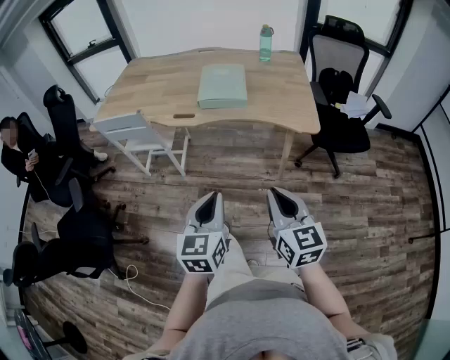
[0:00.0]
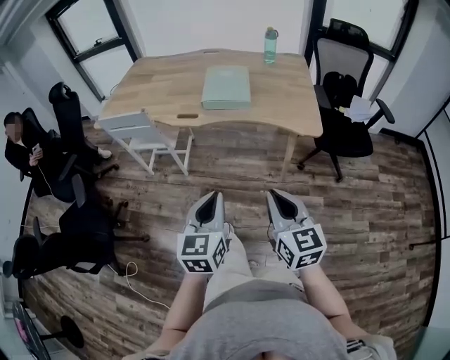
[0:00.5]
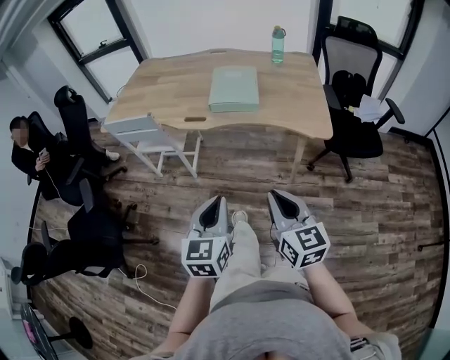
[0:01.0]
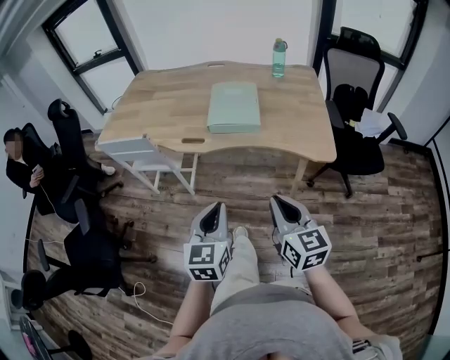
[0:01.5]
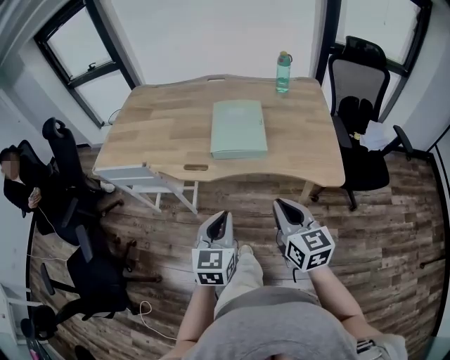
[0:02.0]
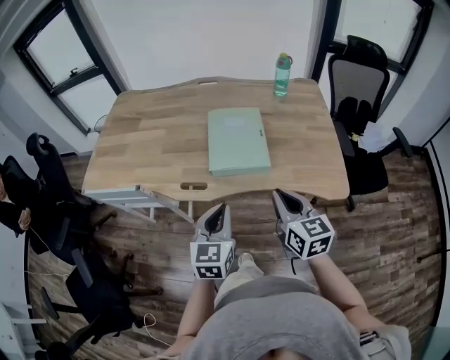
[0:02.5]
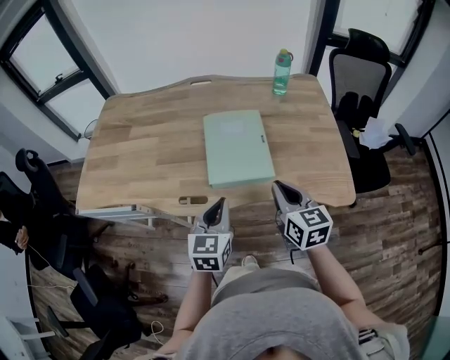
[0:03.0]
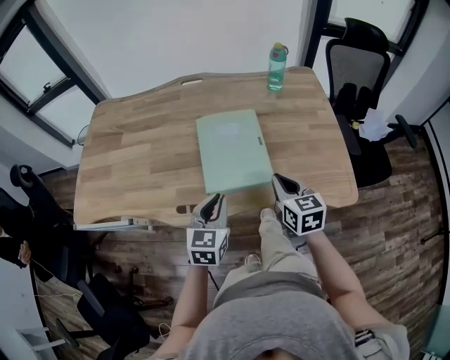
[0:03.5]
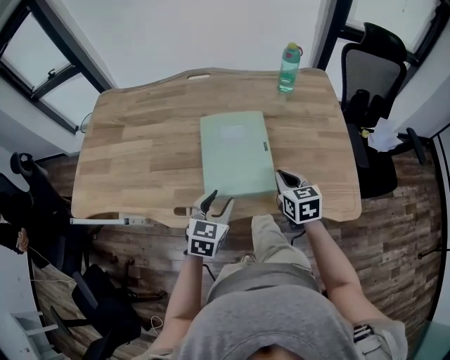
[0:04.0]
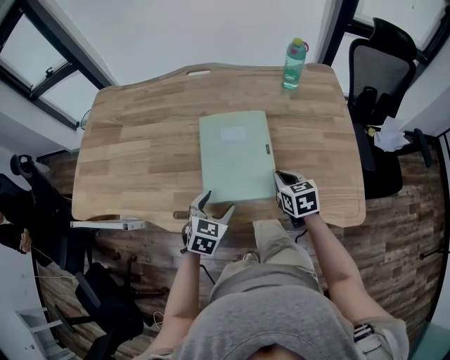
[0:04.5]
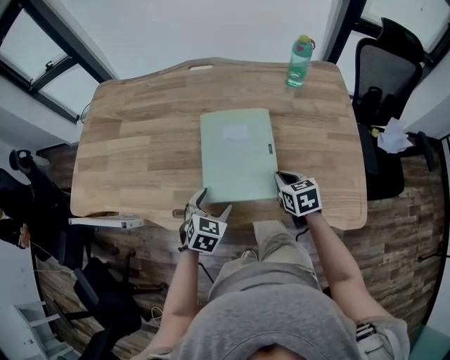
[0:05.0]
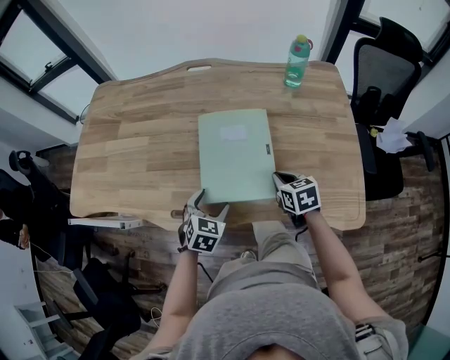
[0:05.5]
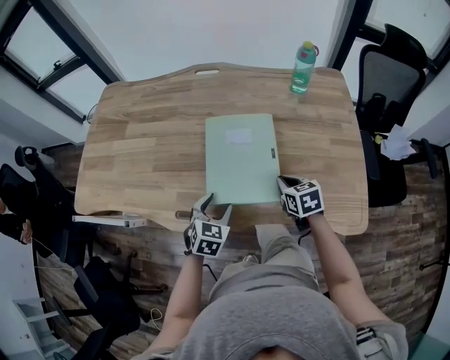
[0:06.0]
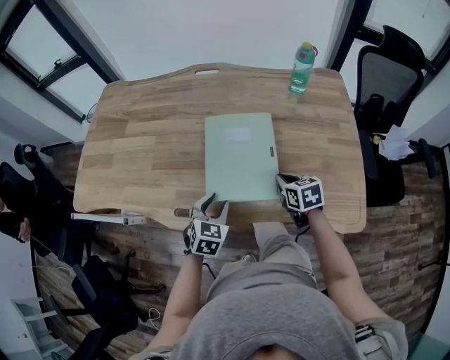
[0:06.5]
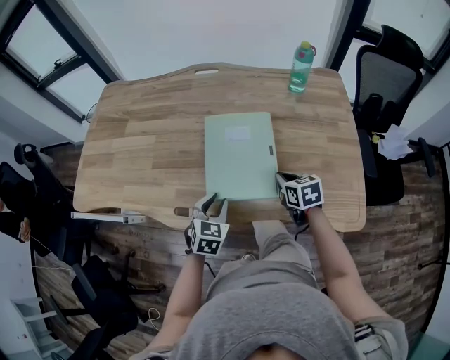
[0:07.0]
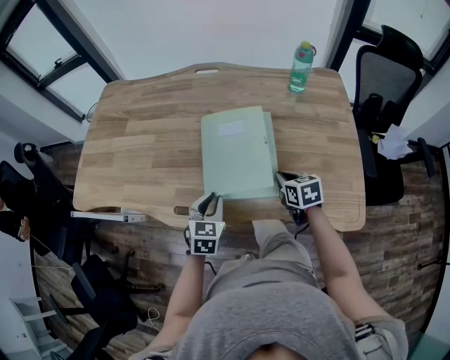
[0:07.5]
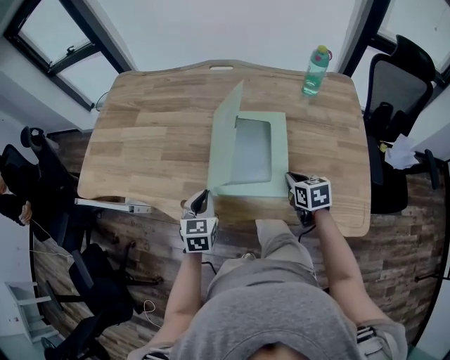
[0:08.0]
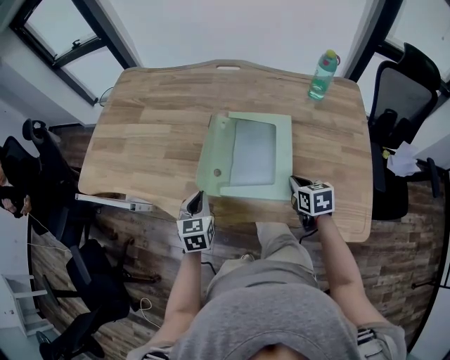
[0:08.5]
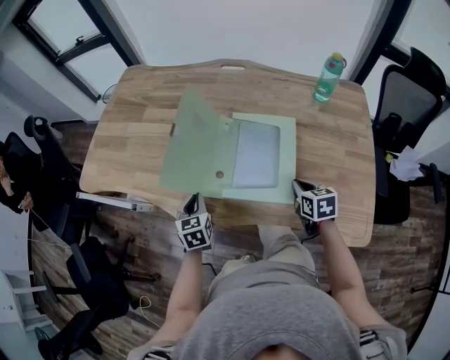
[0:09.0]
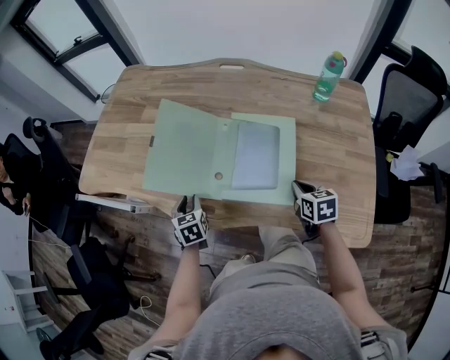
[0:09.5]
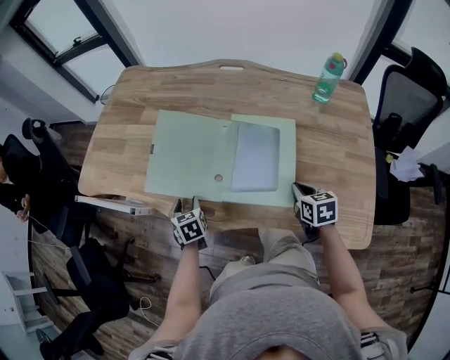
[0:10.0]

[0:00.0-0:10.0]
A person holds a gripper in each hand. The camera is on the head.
0:00.0 to 0:02.0: The grippers both shift forward by about 25 cm.
0:02.0 to 0:04.0: The right gripper travels forward and downward by approximately 35 cm, and rotates some 20 degrees. Meanwhile the left gripper travels forward by about 30 cm, changes its angle by approximately 20 degrees, and opens.
0:04.0 to 0:06.0: The grippers both shift downward by some 5 cm.
0:06.0 to 0:08.0: The left gripper heads to the left, covering roughly 5 cm, changes its angle by roughly 20 degrees, and closes.
0:08.0 to 0:10.0: The left gripper moves to the left and downward, some 15 cm, changes its angle by approximately 30 degrees, and opens.

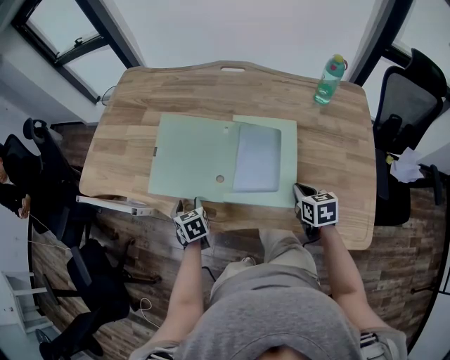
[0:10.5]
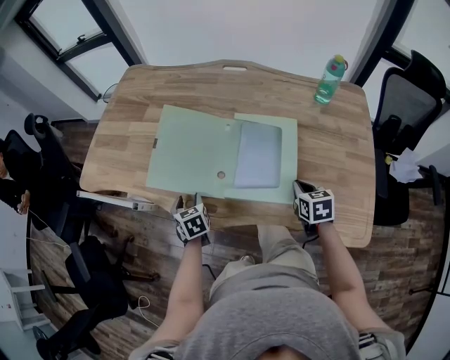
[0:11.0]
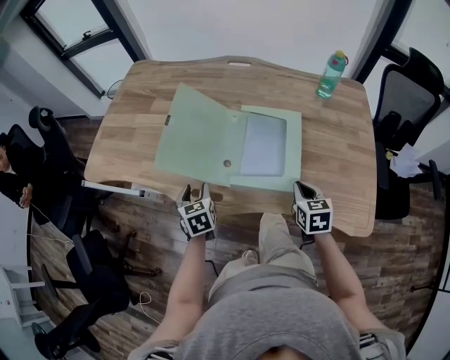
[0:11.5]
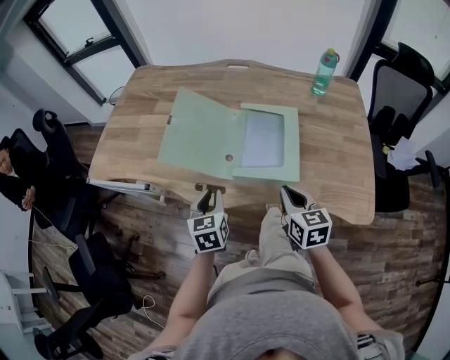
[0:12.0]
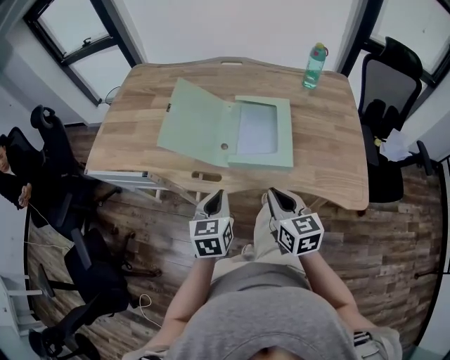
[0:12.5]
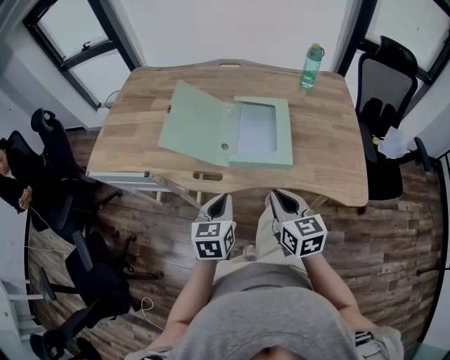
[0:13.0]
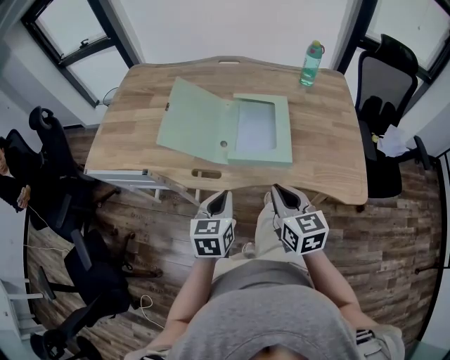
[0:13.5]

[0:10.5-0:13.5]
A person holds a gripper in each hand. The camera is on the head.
0:10.5 to 0:12.0: The left gripper heads upward, backward and to the right, covering roughly 15 cm, swivels roughly 20 degrees, and closes its fingers. The right gripper is displaced to the left, upward and backward by about 20 cm.
0:12.0 to 0:13.5: The grippers both shift backward by roughly 10 cm.

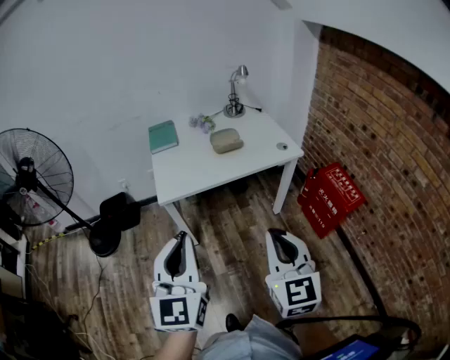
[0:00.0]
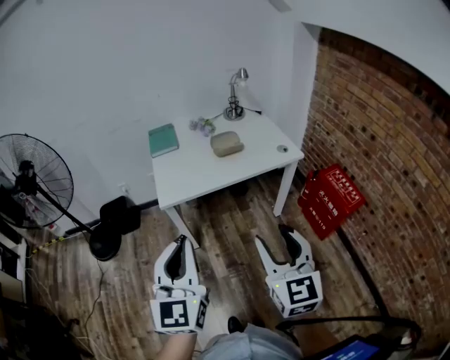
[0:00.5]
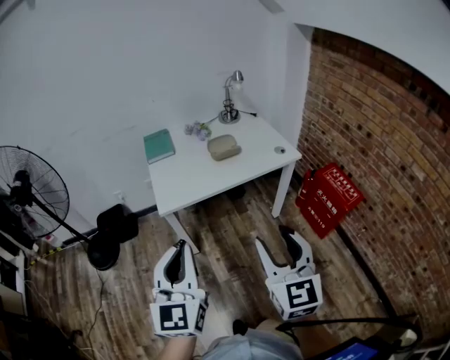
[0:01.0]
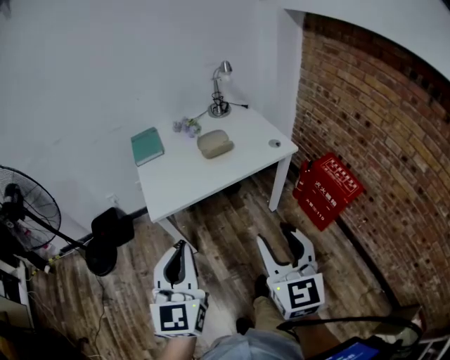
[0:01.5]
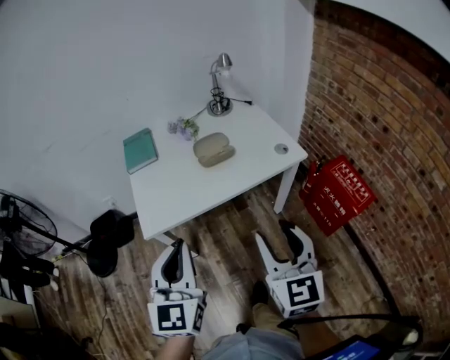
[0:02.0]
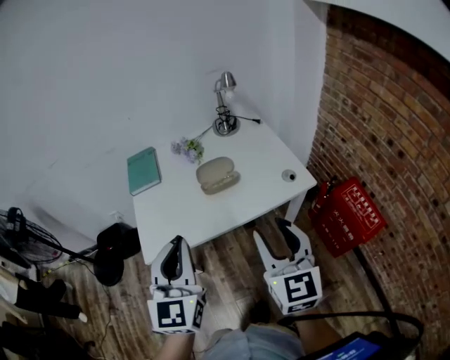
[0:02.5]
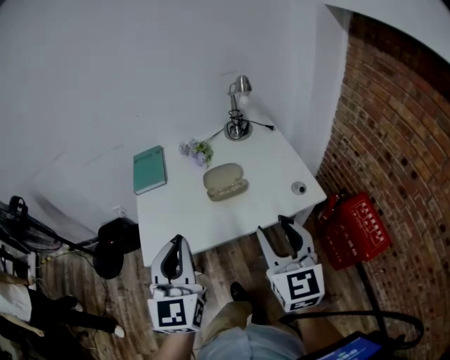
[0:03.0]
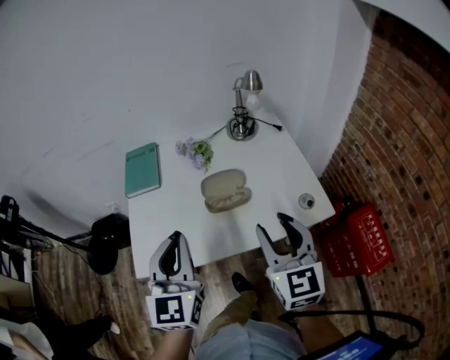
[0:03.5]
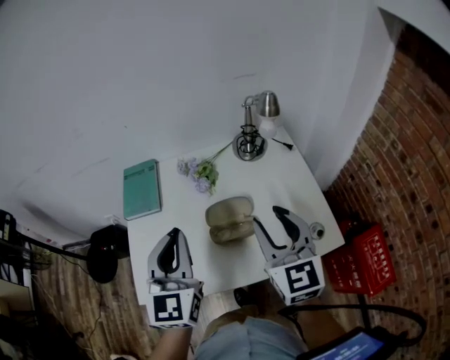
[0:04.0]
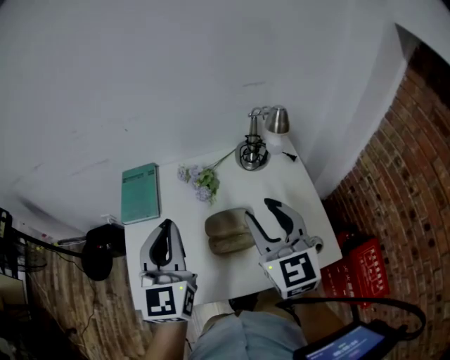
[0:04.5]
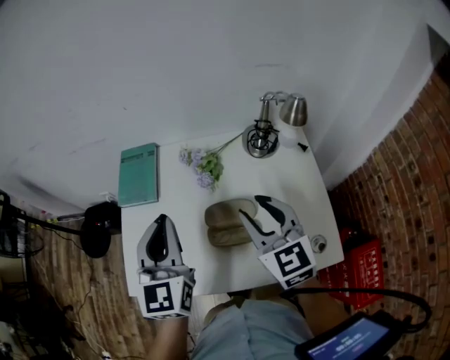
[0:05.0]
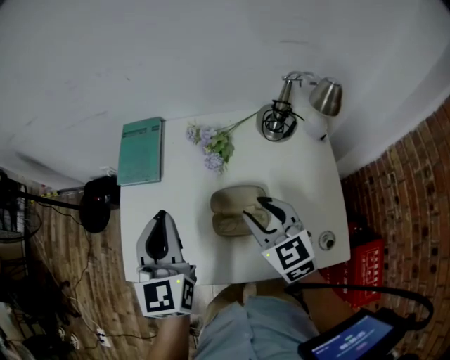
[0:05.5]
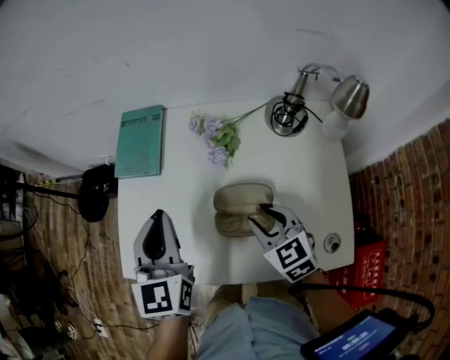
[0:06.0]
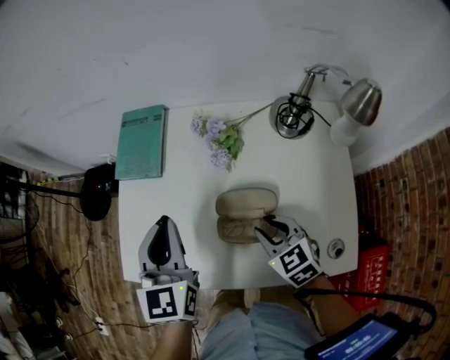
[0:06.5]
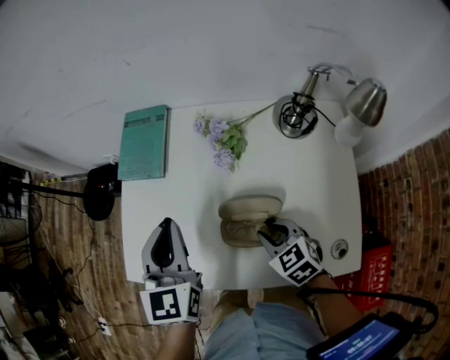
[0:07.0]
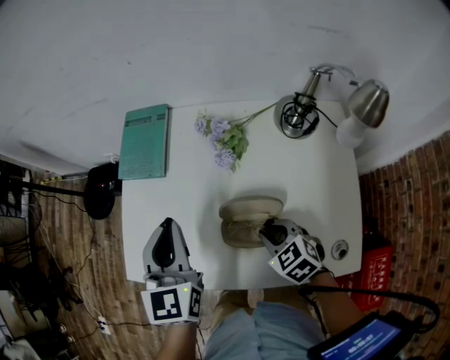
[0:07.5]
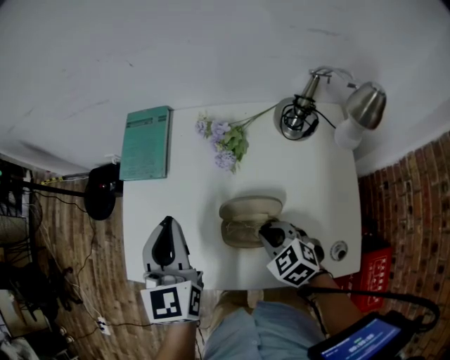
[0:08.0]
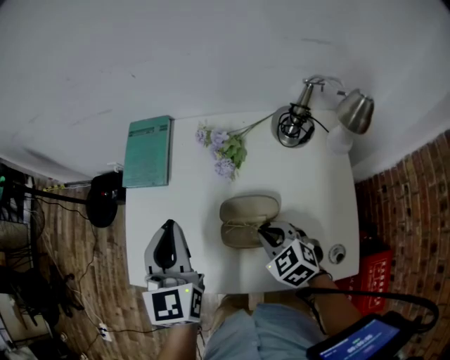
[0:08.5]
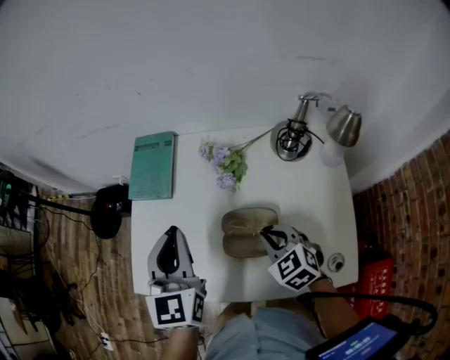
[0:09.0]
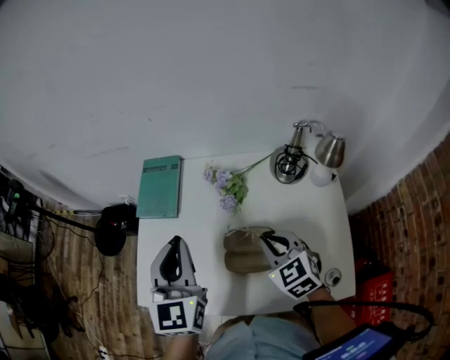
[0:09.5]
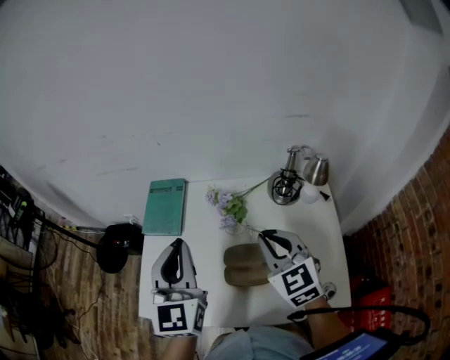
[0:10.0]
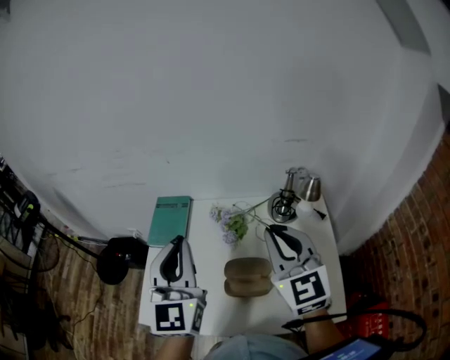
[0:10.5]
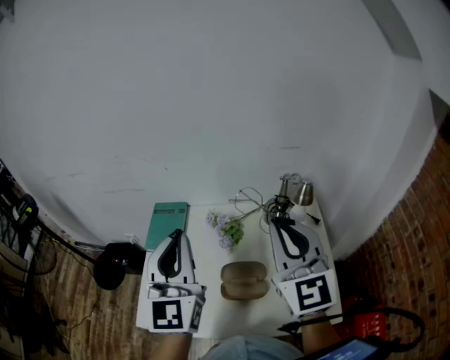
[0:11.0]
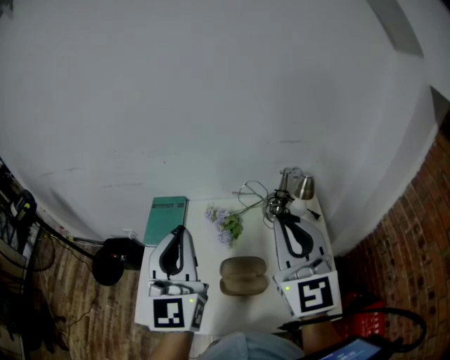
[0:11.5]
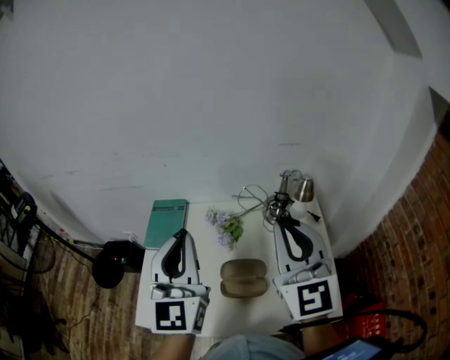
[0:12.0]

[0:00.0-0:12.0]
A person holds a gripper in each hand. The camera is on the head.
0:00.0 to 0:02.0: Both grippers move forward, approximately 15 cm. The right gripper opens.
0:02.0 to 0:04.0: Both grippers travel together forward, roughly 35 cm.
0:04.0 to 0:06.0: The right gripper is displaced downward and forward by about 20 cm, and swivels roughly 40 degrees; the left gripper shifts about 10 cm forward and downward, and turns by some 20 degrees.
0:06.0 to 0:08.0: The right gripper is displaced downward by about 5 cm, turns by about 20 degrees, and closes its fingers.
0:08.0 to 0:10.0: The right gripper moves upward, about 20 cm, and points its fingers approximately 30 degrees further upward; the left gripper moves upward, roughly 10 cm.
0:10.0 to 0:12.0: The left gripper is displaced upward by about 10 cm; the right gripper heads upward, covering approximately 20 cm, and swivels about 30 degrees.

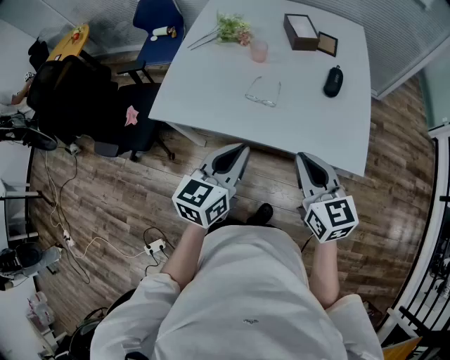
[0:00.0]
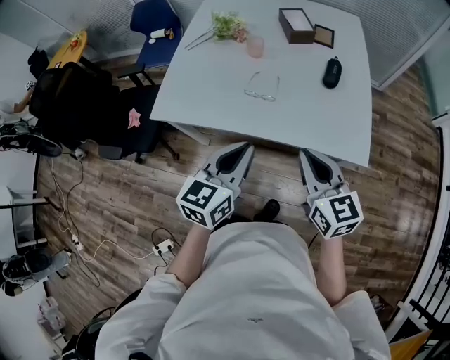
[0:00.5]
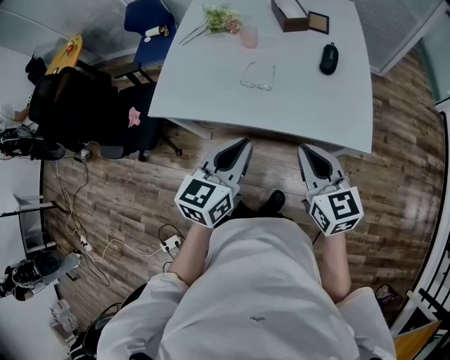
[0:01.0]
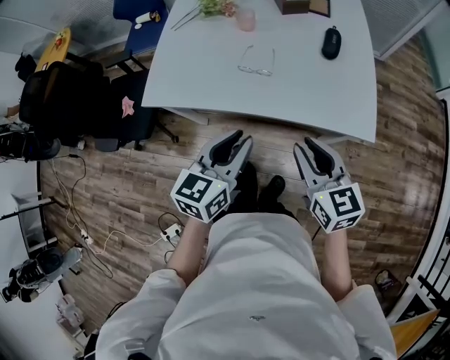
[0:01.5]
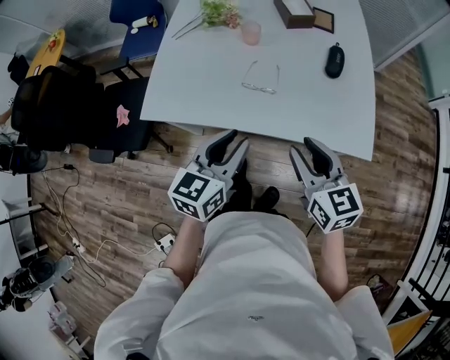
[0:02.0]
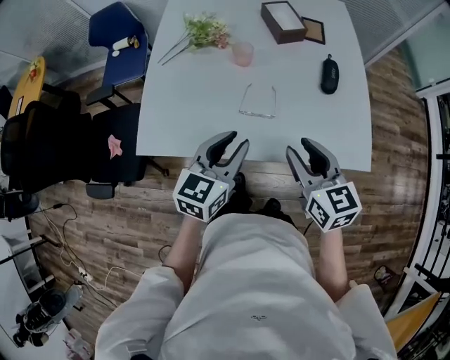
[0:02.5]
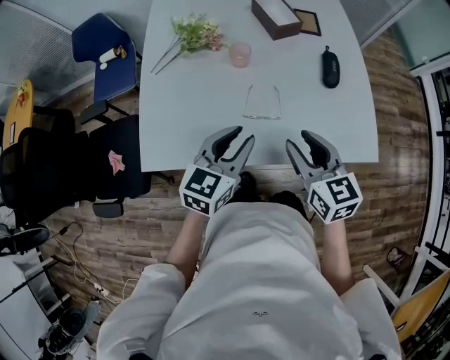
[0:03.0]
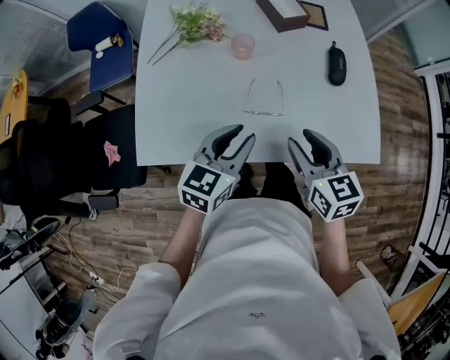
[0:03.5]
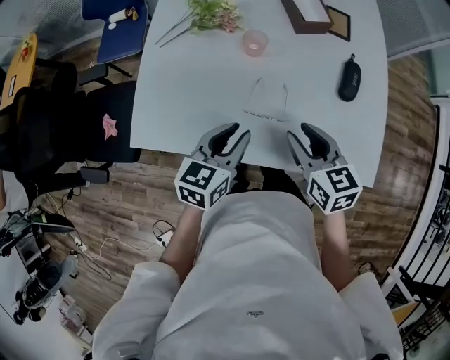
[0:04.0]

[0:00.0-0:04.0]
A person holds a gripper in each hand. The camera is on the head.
0:00.0 to 0:02.0: The right gripper opens. The left gripper opens up.
0:02.0 to 0:04.0: The left gripper travels forward and downward by some 20 cm; the right gripper heads forward, covering approximately 20 cm.
